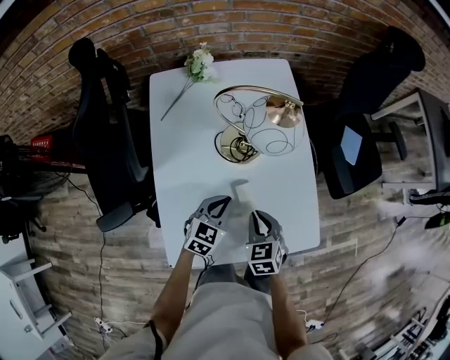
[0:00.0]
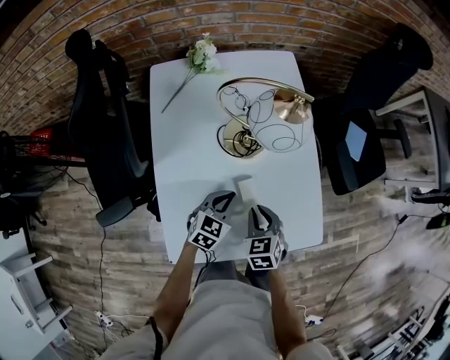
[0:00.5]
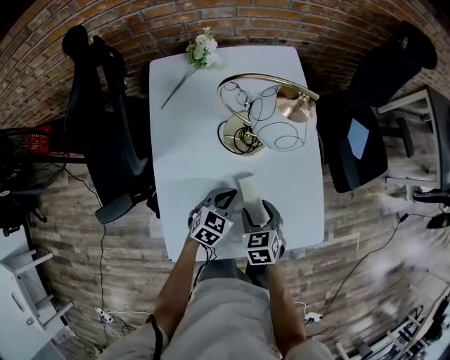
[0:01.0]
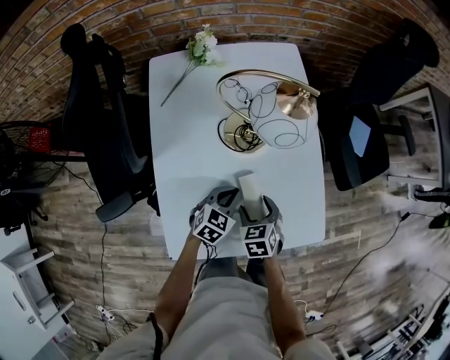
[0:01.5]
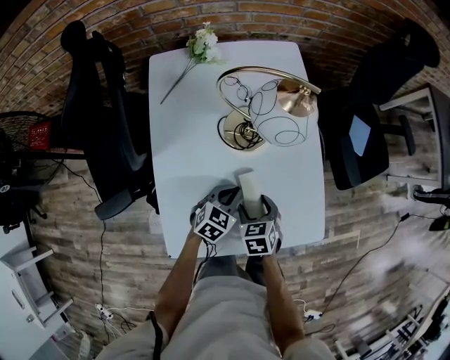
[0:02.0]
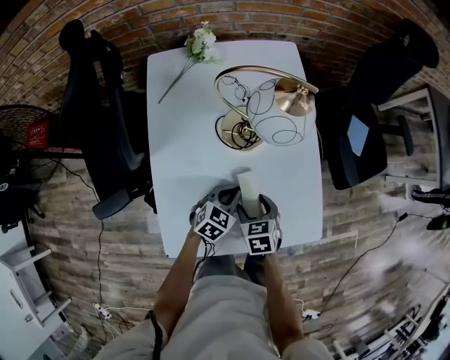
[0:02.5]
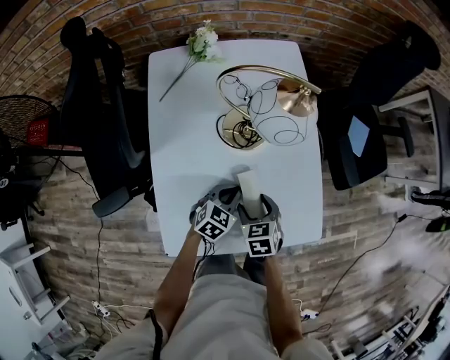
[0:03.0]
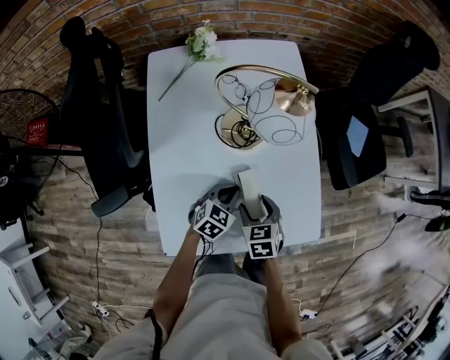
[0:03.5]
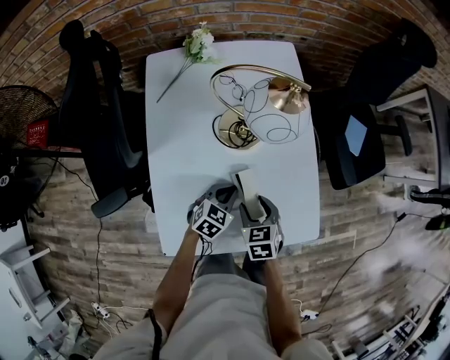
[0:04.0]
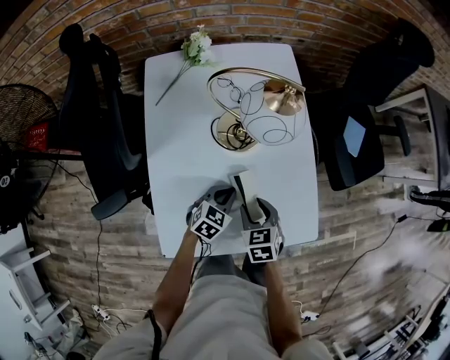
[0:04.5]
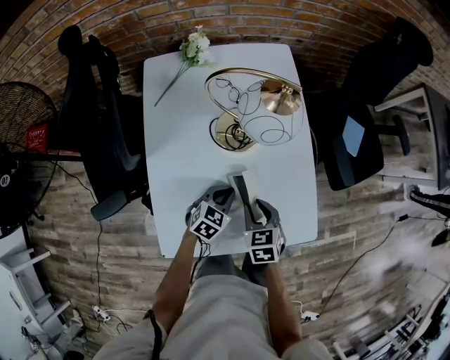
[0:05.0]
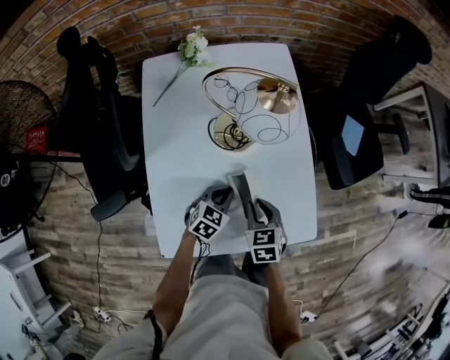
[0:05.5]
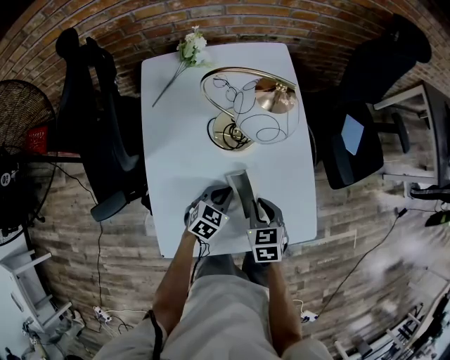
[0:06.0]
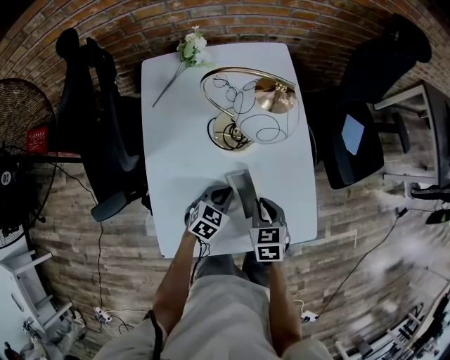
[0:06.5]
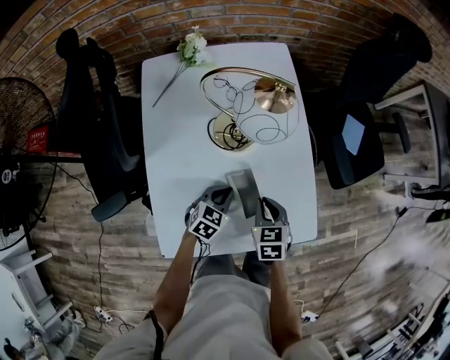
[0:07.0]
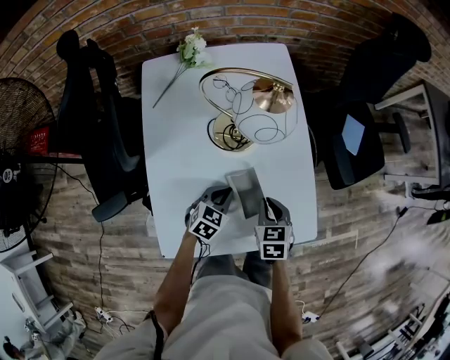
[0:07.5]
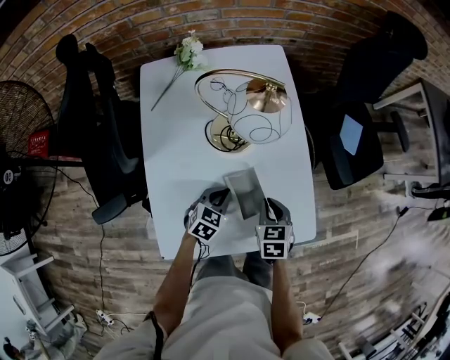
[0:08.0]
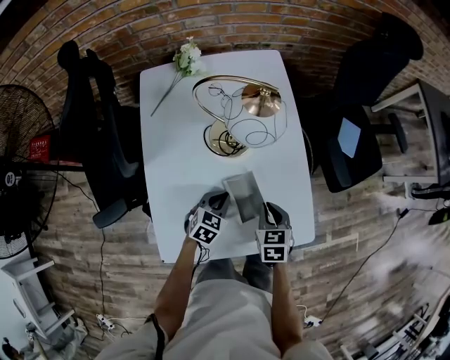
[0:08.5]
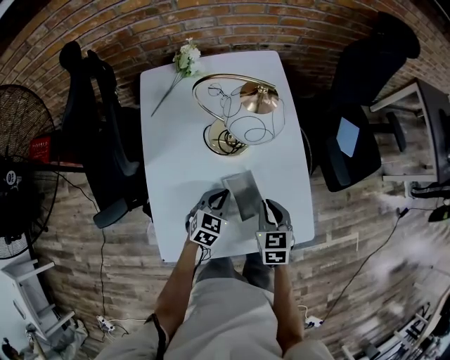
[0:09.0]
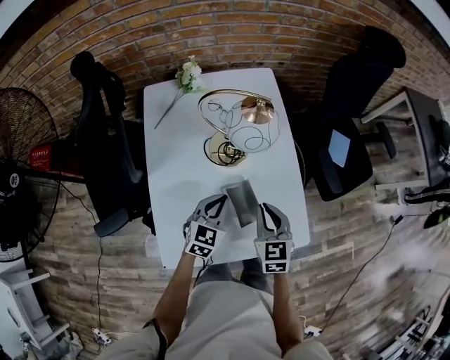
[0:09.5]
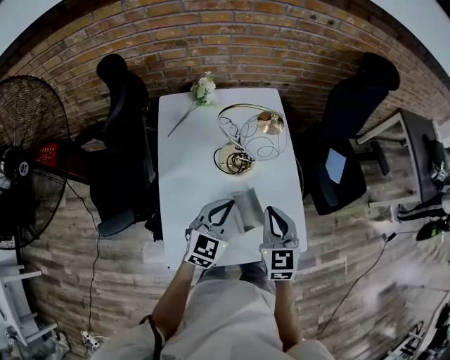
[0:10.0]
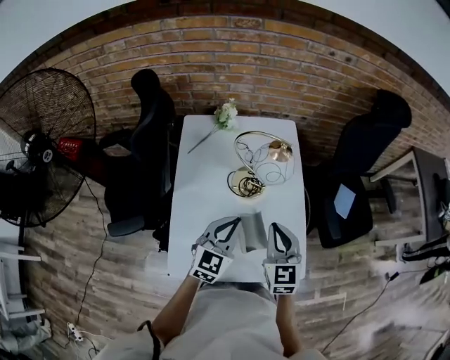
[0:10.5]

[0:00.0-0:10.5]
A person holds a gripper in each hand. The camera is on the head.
0:00.0 to 0:02.0: The two grippers go about 5 cm downward. The right gripper opens.
0:02.0 to 0:04.0: There are only small adjustments of the grippers.
0:04.0 to 0:06.5: The right gripper closes up.
0:06.5 to 0:08.5: The grippers stay close to where they were, moving slightly.
0:08.5 to 0:10.5: The grippers both shift upward by approximately 25 cm. The left gripper points its fingers approximately 30 degrees further upward. Meanwhile the right gripper points its fingers about 30 degrees further upward.

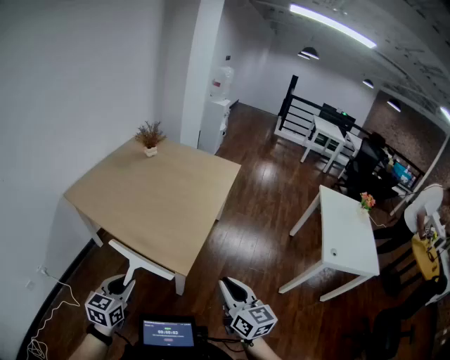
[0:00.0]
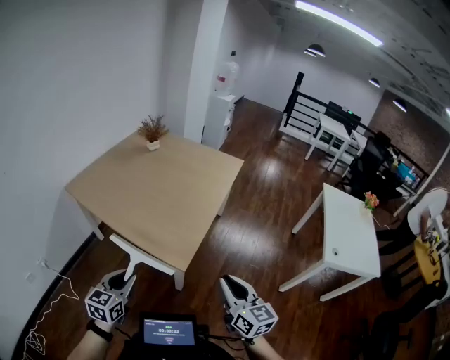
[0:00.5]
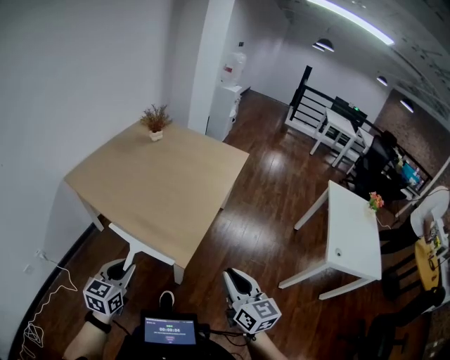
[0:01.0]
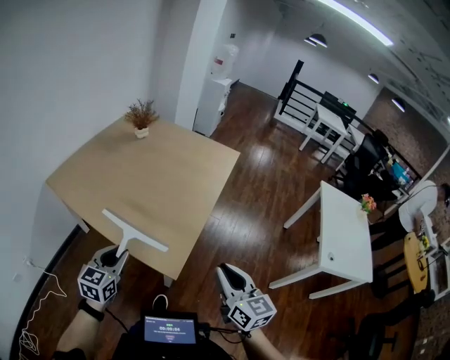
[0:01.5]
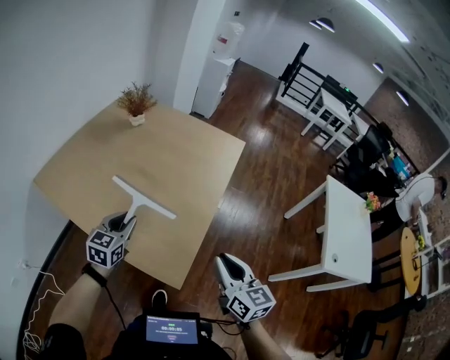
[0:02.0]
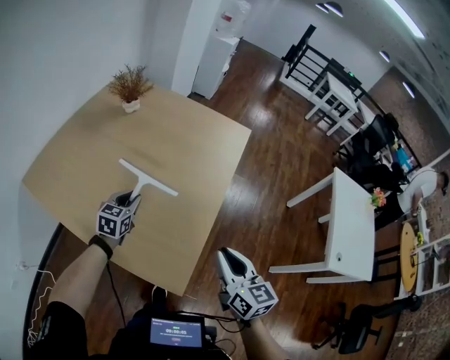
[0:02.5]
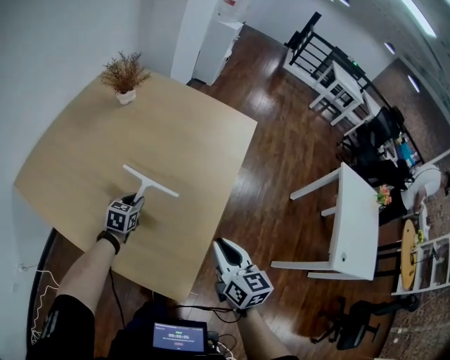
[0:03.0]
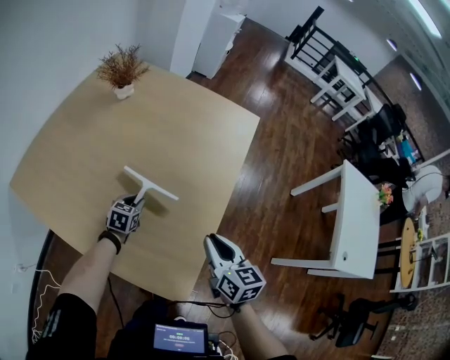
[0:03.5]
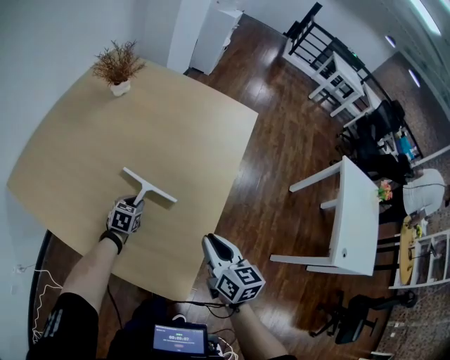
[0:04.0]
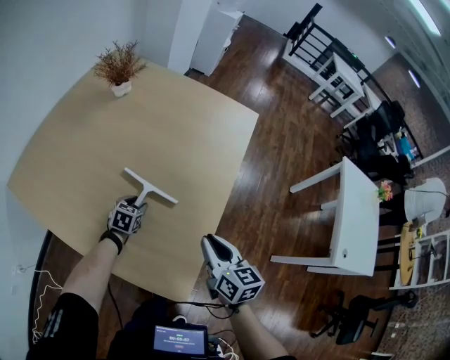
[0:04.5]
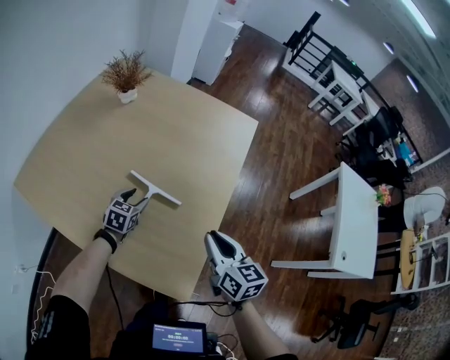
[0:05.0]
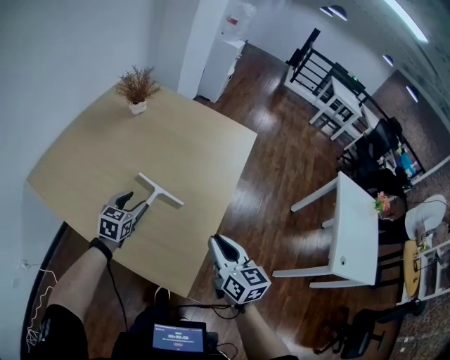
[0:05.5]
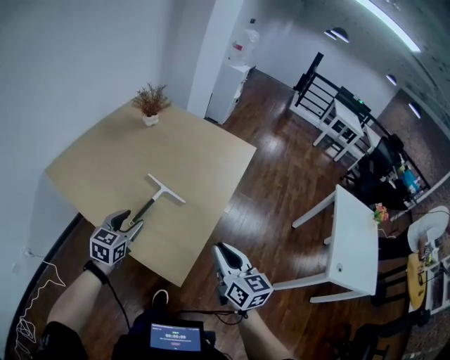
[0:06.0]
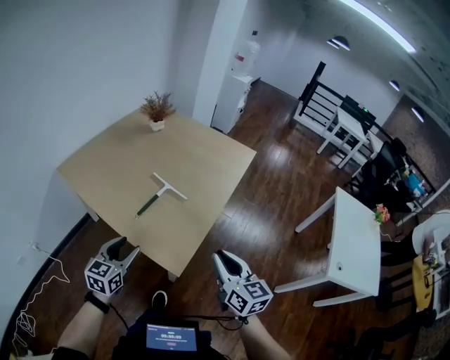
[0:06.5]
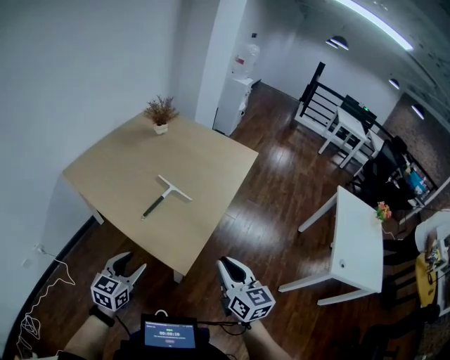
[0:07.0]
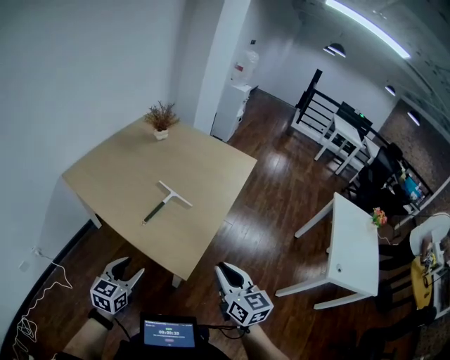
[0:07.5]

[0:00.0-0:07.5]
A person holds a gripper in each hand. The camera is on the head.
0:00.0 to 0:02.0: The left gripper goes roughly 35 cm forward; the right gripper moves forward, some 25 cm.
0:02.0 to 0:04.0: The left gripper moves downward and forward, roughly 35 cm, and rotates approximately 30 degrees. The right gripper moves forward and downward, roughly 20 cm.
0:04.0 to 0:05.5: The left gripper travels upward by about 15 cm, and opens. Meanwhile the right gripper goes approximately 10 cm upward and backward.
0:05.5 to 0:07.5: The left gripper goes some 40 cm backward. Meanwhile the right gripper shifts about 20 cm backward.

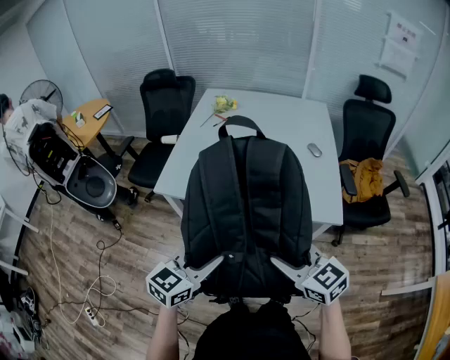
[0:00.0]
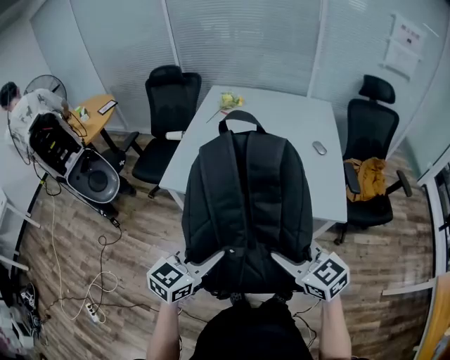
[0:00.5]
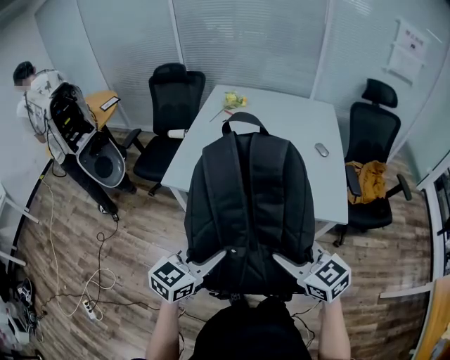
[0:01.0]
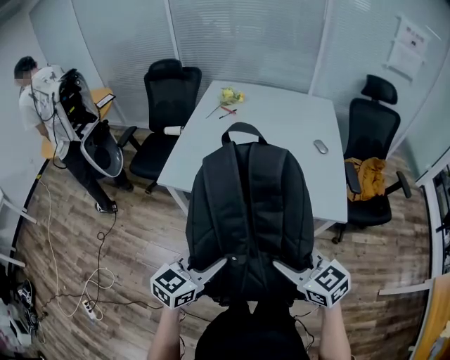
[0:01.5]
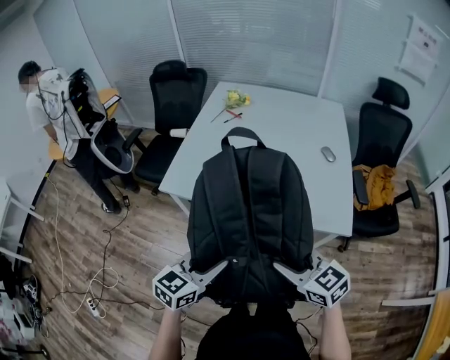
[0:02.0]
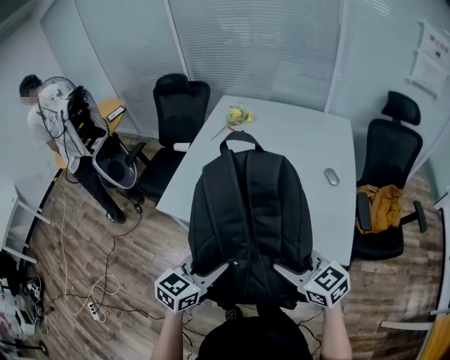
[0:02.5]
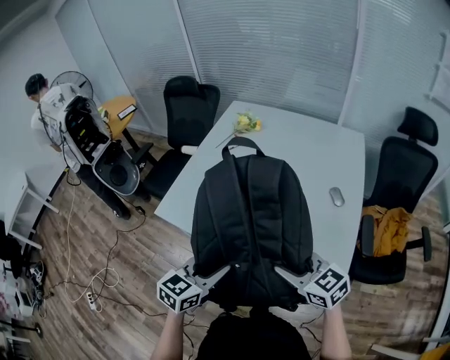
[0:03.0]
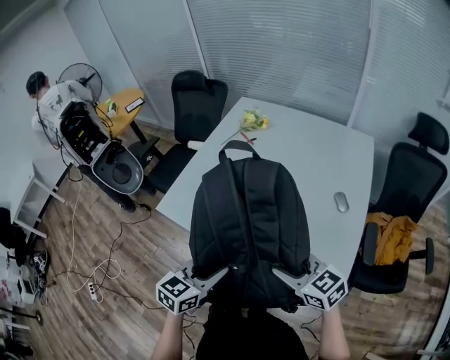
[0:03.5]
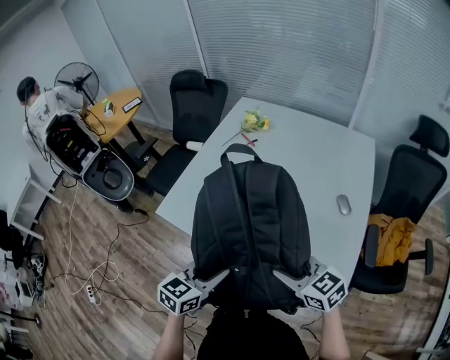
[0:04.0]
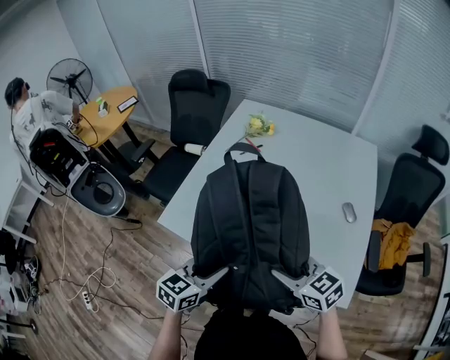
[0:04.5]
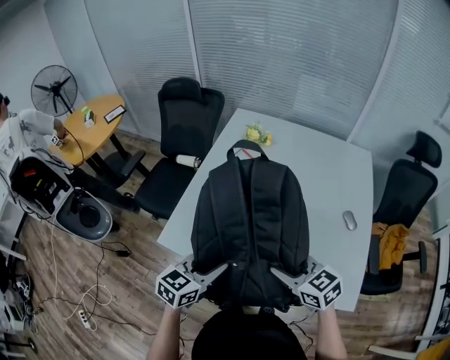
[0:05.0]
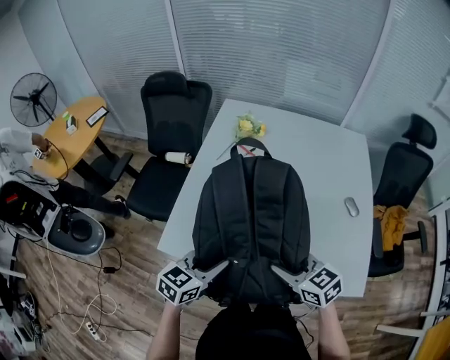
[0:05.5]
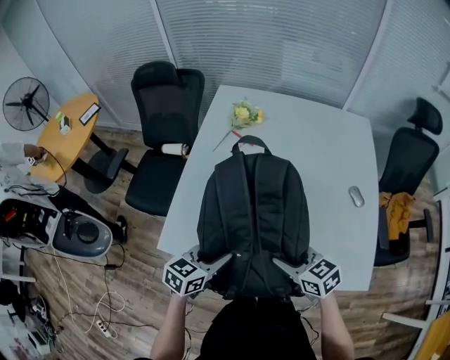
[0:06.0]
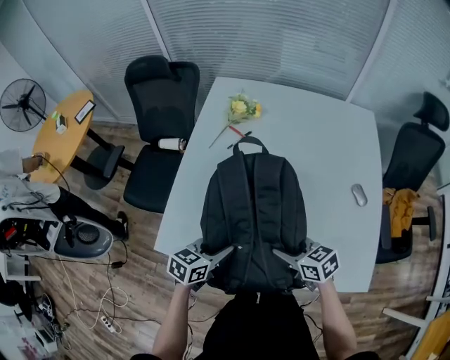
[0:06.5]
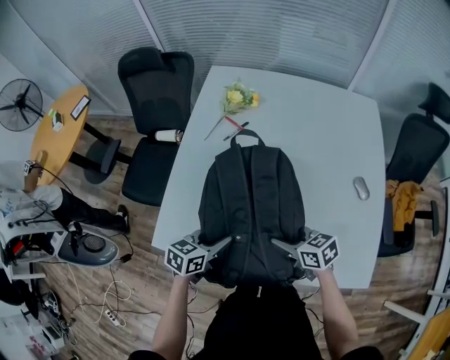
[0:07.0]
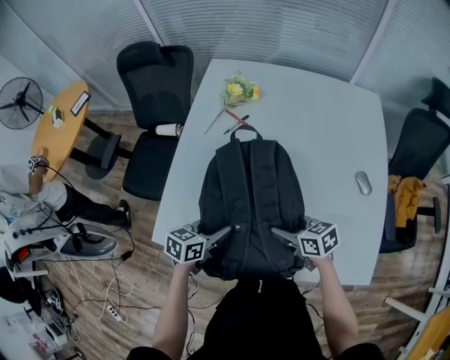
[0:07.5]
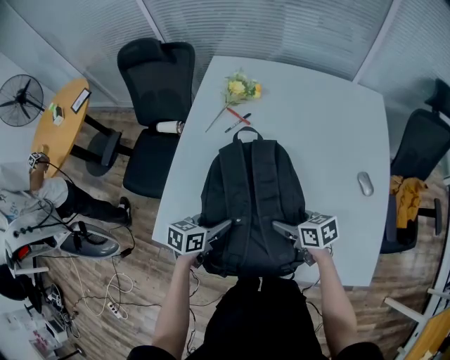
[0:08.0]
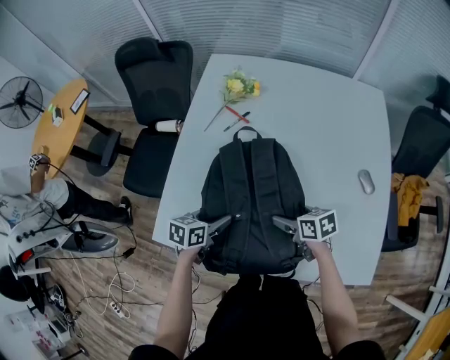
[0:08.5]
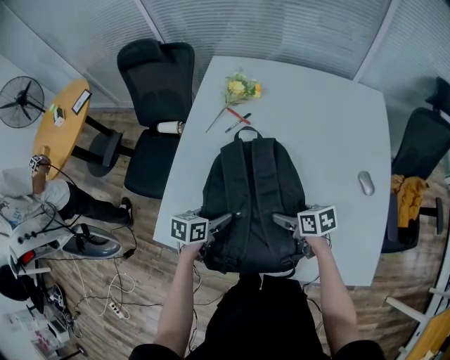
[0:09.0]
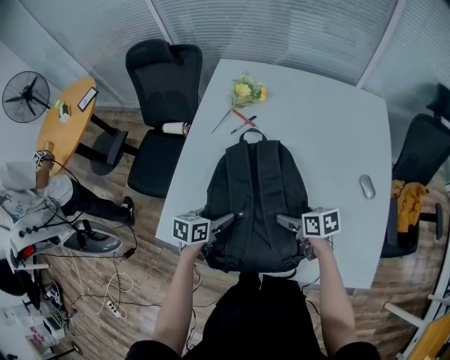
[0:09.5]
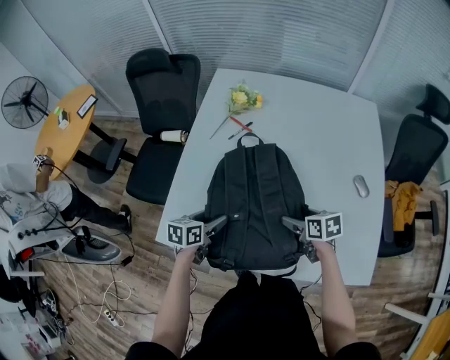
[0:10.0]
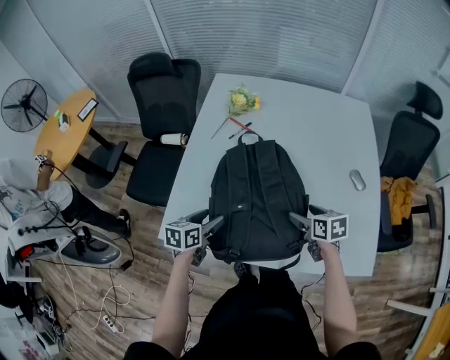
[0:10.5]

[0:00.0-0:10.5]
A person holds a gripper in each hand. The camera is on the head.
0:00.0 to 0:02.0: The right gripper changes place by about 5 cm.
0:02.0 to 0:04.0: Both grippers travel together forward and to the right, some 20 cm.
0:04.0 to 0:06.5: Both grippers travel together forward, downward and to the left, some 25 cm. The right gripper changes its angle by roughly 20 degrees, while the left gripper turns by some 20 degrees.
0:06.5 to 0:08.5: The two grippers go approximately 10 cm forward and downward. The right gripper opens. The left gripper opens up.
0:08.5 to 0:10.5: The right gripper changes place by roughly 5 cm. Meanwhile the left gripper goes roughly 5 cm to the left.
